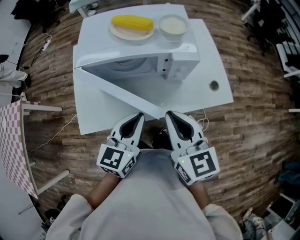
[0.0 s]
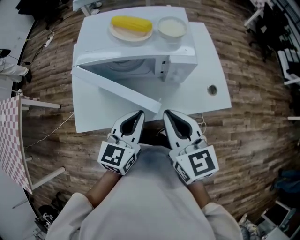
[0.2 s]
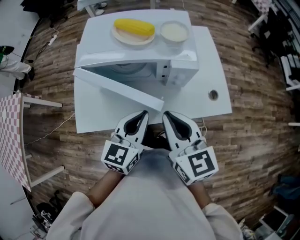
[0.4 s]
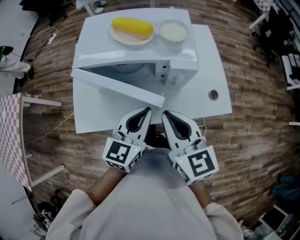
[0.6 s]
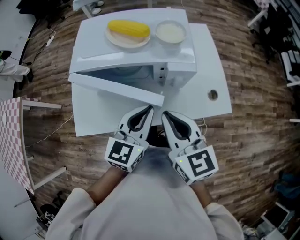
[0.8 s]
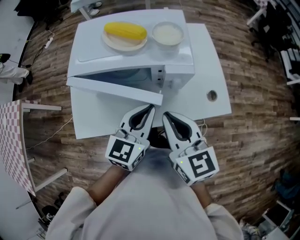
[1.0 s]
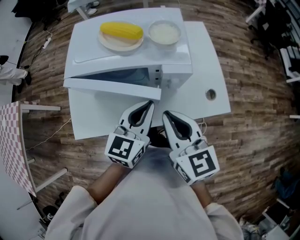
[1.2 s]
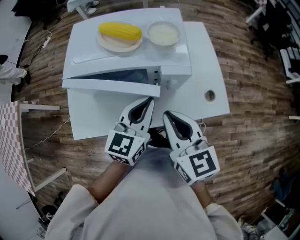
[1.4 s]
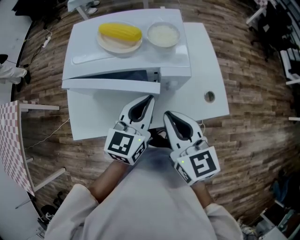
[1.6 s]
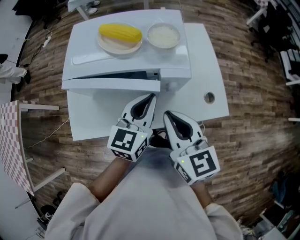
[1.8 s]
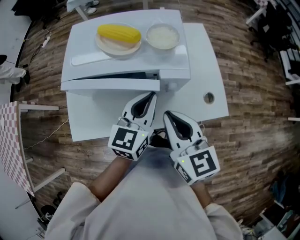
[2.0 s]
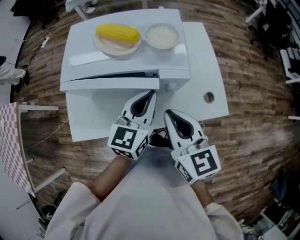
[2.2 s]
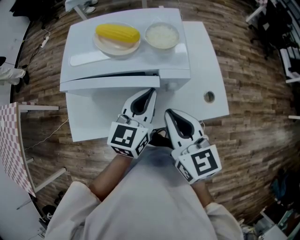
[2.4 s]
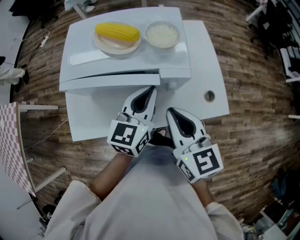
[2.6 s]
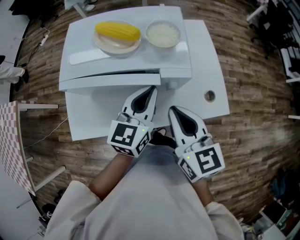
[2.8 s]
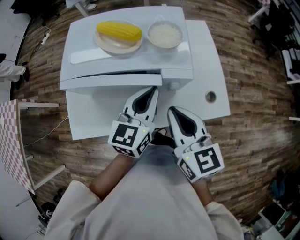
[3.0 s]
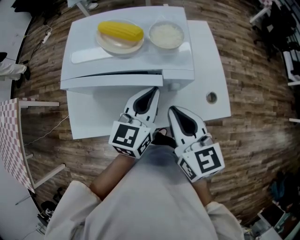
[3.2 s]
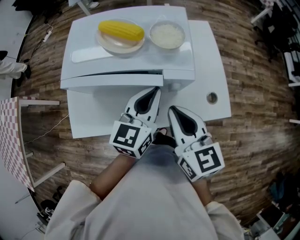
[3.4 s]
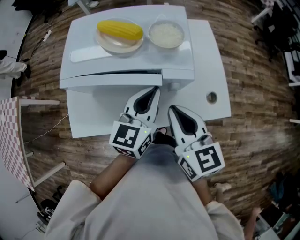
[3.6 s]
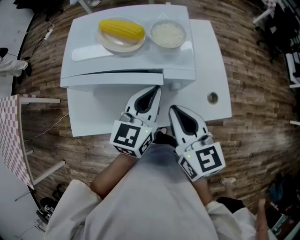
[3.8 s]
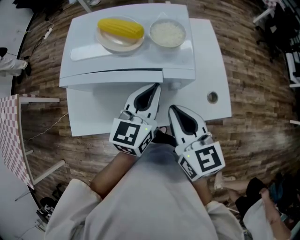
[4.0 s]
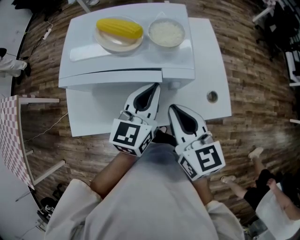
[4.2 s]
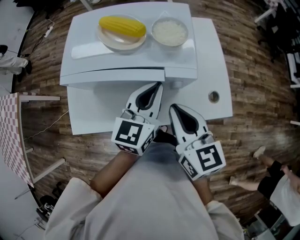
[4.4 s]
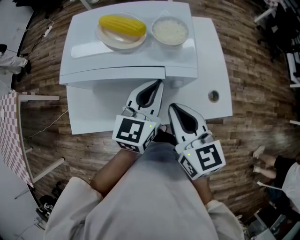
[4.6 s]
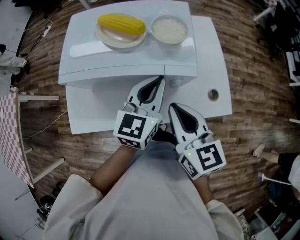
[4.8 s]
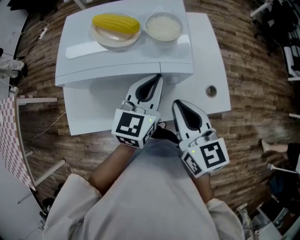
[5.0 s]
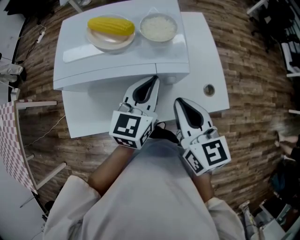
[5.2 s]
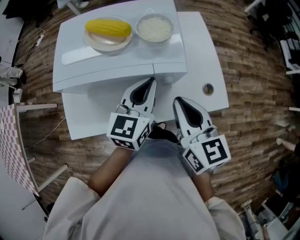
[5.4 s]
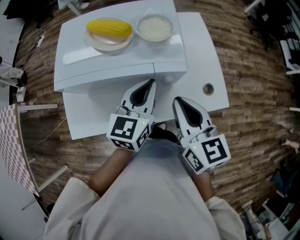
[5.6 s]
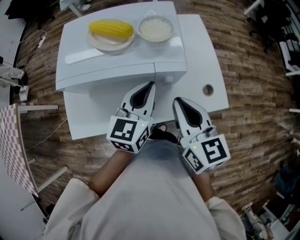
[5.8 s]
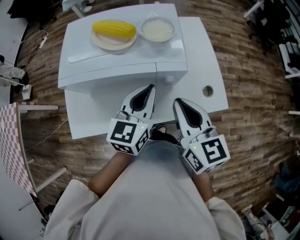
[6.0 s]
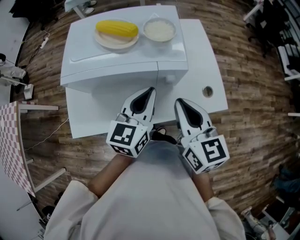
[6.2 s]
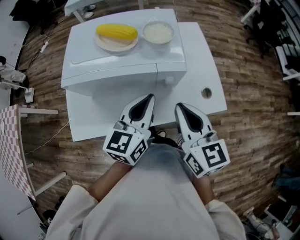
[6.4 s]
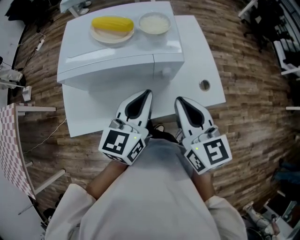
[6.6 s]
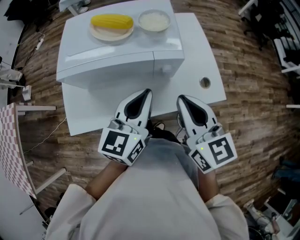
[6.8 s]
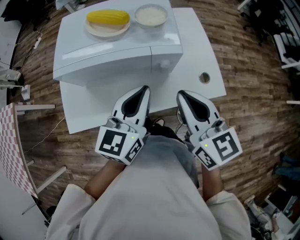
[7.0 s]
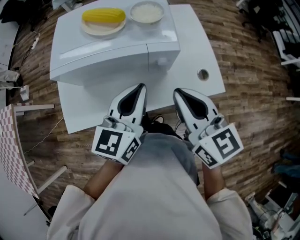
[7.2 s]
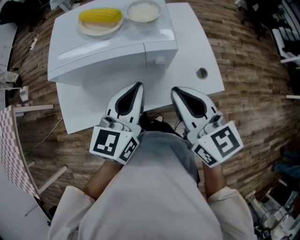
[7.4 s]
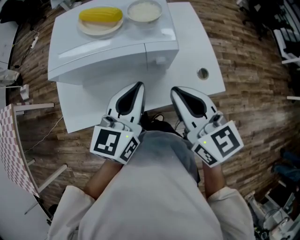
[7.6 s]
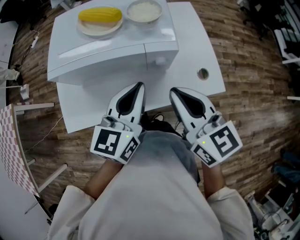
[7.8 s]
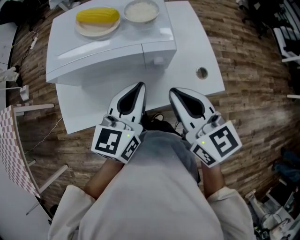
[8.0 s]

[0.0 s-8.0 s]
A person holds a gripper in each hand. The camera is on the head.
0.0 to 1.6 s: The left gripper heads forward and to the right, covering roughly 15 cm; the right gripper is displaced forward by approximately 5 cm.
1.6 to 4.8 s: The grippers stay close to where they were, moving slightly.
4.8 to 6.4 s: The left gripper goes about 5 cm backward.
6.4 to 8.0 s: The grippers make only small movements.

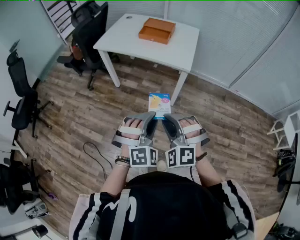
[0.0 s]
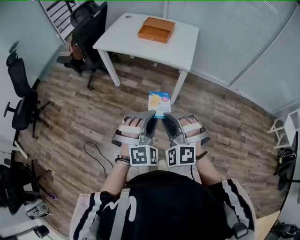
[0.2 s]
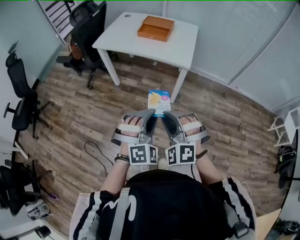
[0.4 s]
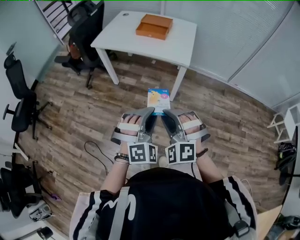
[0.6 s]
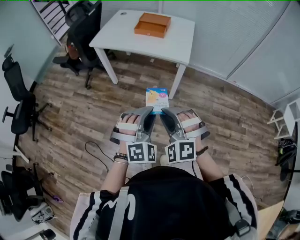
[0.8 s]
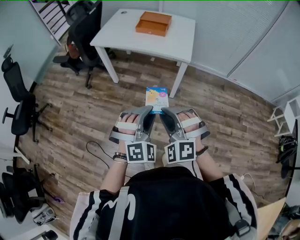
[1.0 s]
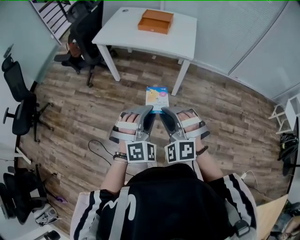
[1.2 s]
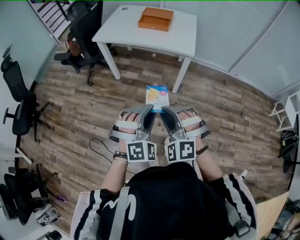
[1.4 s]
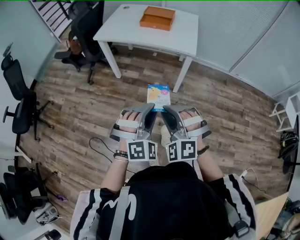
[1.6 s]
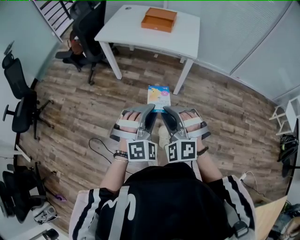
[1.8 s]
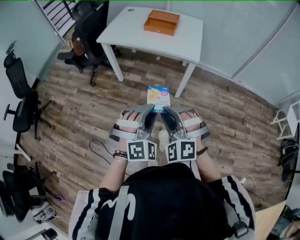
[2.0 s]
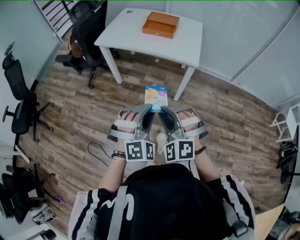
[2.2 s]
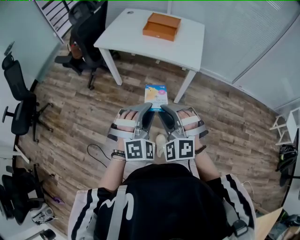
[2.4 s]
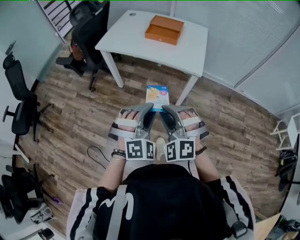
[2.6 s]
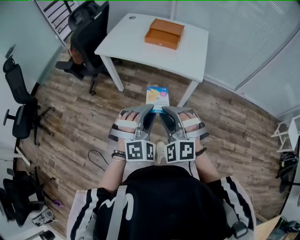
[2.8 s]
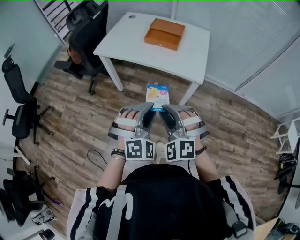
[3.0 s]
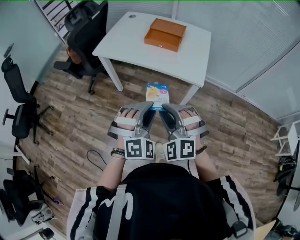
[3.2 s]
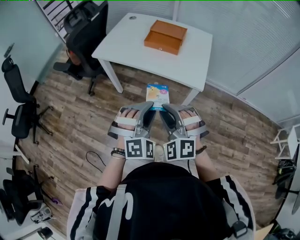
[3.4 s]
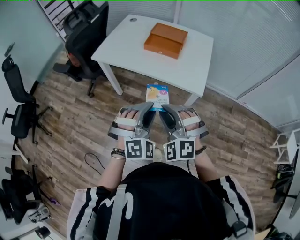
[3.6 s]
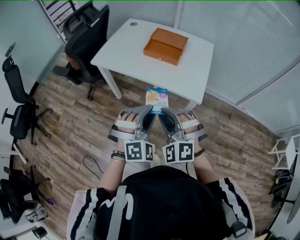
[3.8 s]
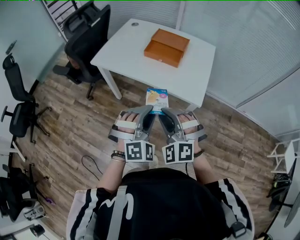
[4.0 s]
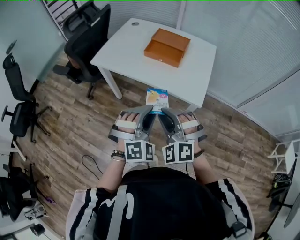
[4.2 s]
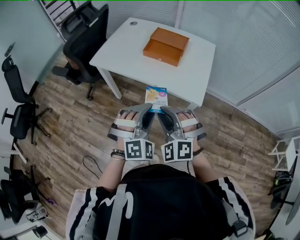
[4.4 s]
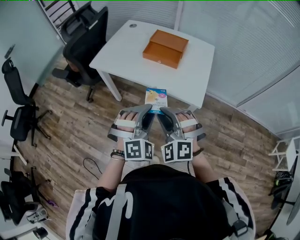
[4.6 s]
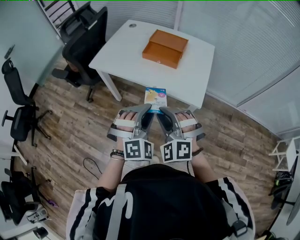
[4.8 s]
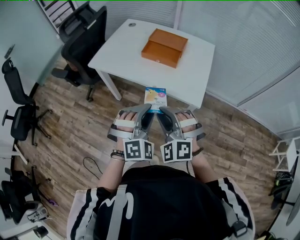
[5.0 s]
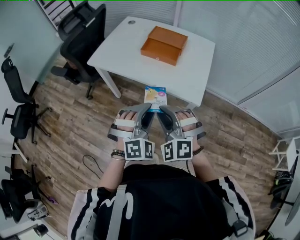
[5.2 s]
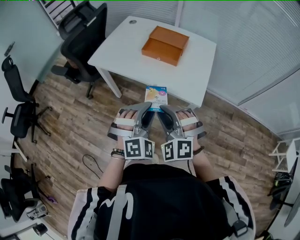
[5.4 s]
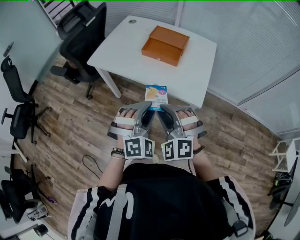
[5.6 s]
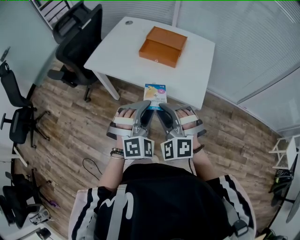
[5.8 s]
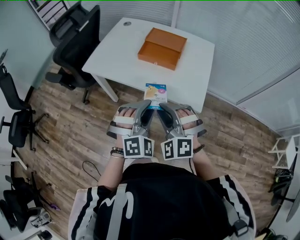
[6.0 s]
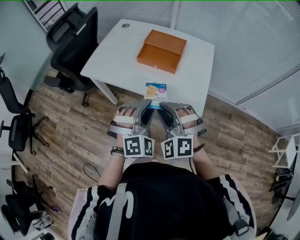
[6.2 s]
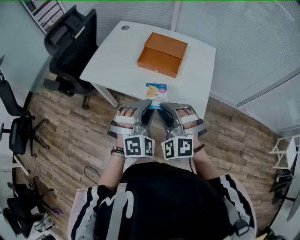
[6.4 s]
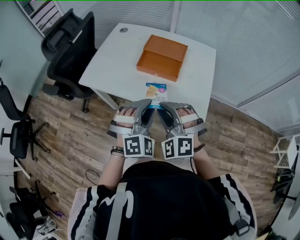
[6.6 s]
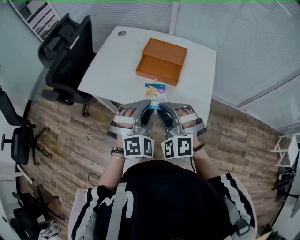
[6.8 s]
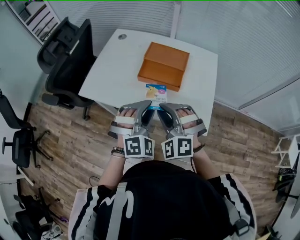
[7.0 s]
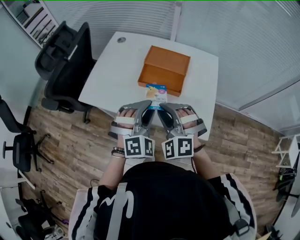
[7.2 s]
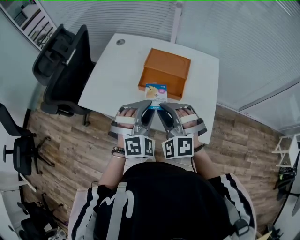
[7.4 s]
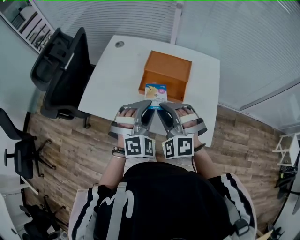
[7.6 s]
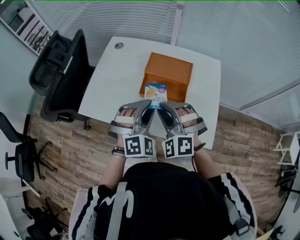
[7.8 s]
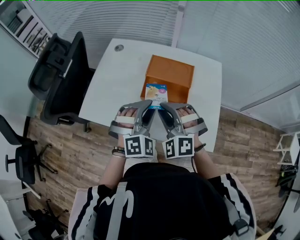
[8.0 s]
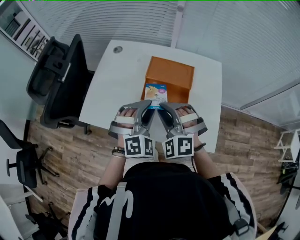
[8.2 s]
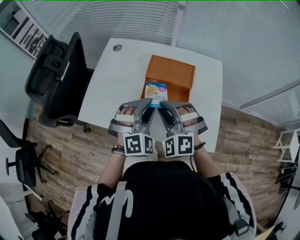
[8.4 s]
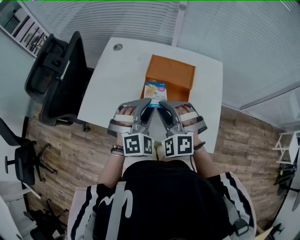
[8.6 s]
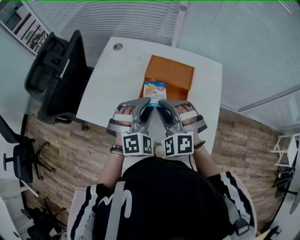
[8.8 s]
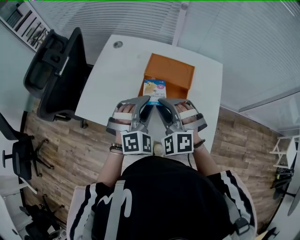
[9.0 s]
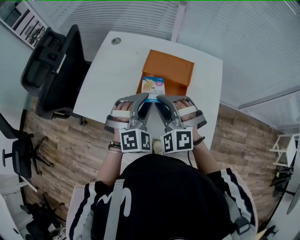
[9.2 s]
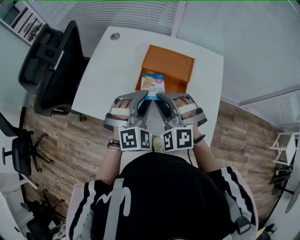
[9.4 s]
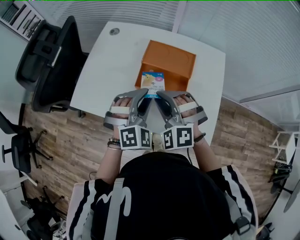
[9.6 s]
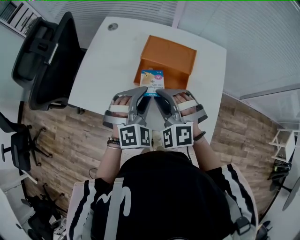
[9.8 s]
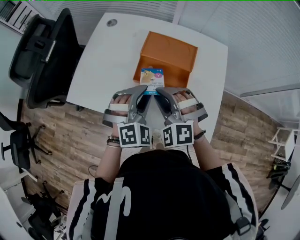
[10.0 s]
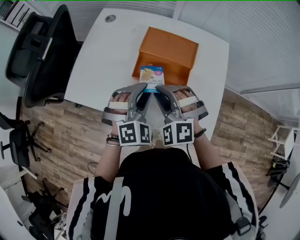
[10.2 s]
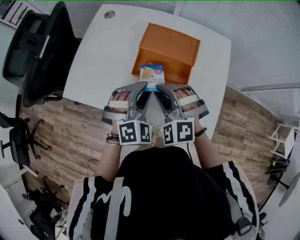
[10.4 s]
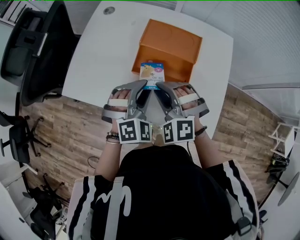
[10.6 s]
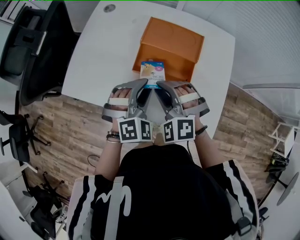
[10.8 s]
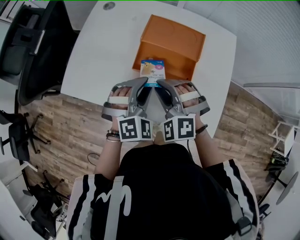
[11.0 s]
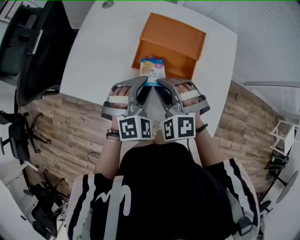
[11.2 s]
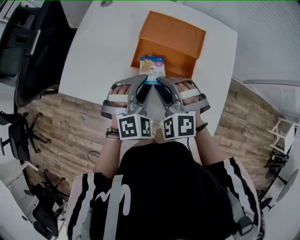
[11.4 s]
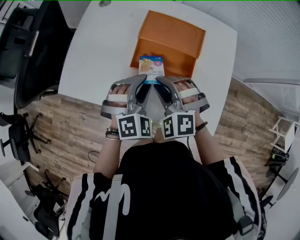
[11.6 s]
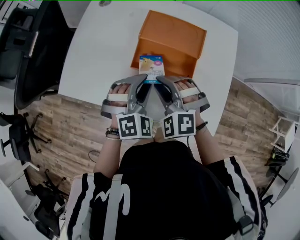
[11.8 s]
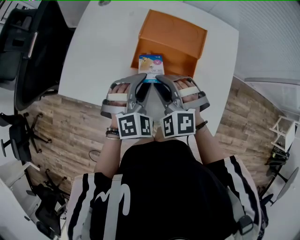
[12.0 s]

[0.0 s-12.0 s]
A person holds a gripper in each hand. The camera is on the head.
0.0 to 1.6 s: Both grippers move to the left, some 10 cm.
1.6 to 3.0 s: The two grippers go about 20 cm forward.
3.0 to 4.4 s: The two grippers go about 15 cm forward.
4.4 to 6.0 s: The grippers both shift forward by roughly 10 cm.
6.0 to 7.6 s: The grippers both shift forward by about 25 cm.
7.6 to 9.0 s: The grippers both shift forward by some 5 cm.
9.0 to 10.4 s: Both grippers move downward, roughly 5 cm.
10.4 to 12.0 s: There are only small adjustments of the grippers.

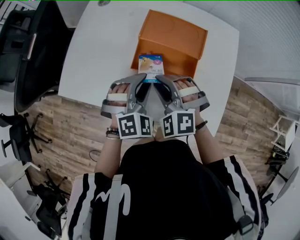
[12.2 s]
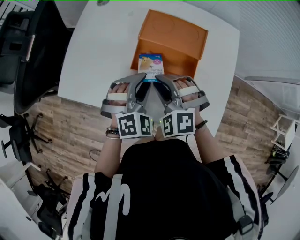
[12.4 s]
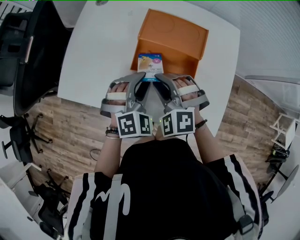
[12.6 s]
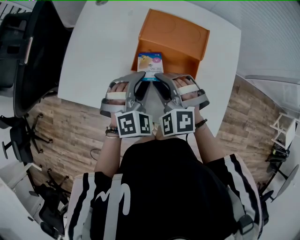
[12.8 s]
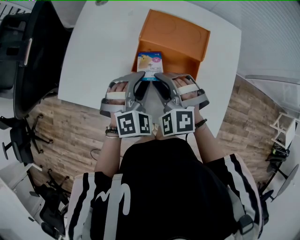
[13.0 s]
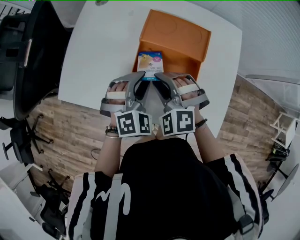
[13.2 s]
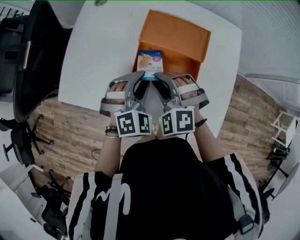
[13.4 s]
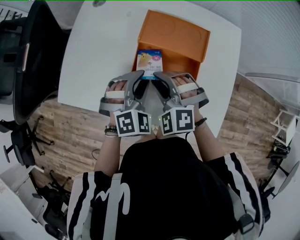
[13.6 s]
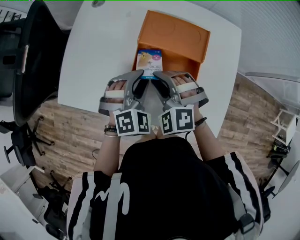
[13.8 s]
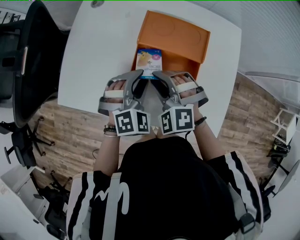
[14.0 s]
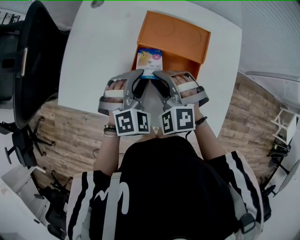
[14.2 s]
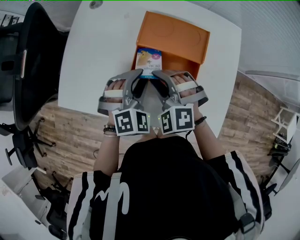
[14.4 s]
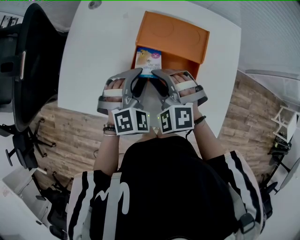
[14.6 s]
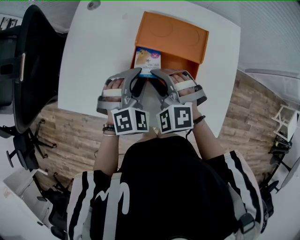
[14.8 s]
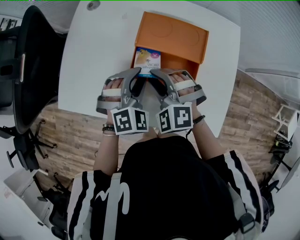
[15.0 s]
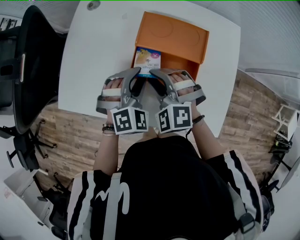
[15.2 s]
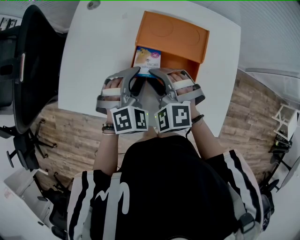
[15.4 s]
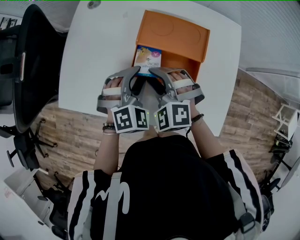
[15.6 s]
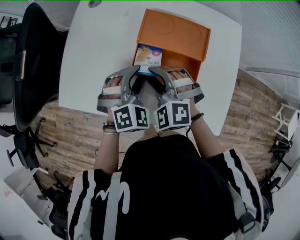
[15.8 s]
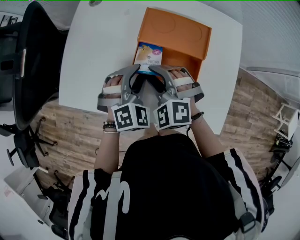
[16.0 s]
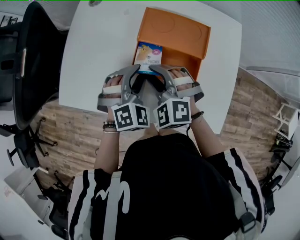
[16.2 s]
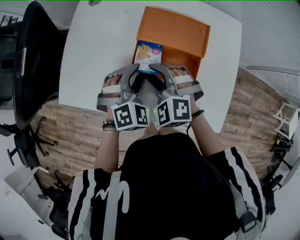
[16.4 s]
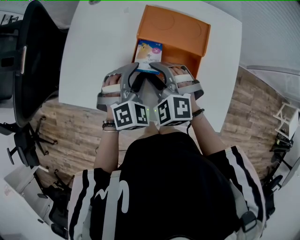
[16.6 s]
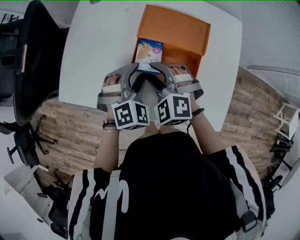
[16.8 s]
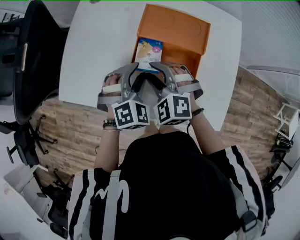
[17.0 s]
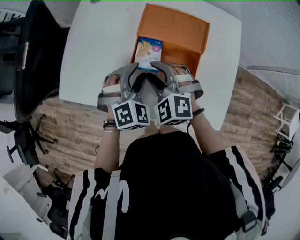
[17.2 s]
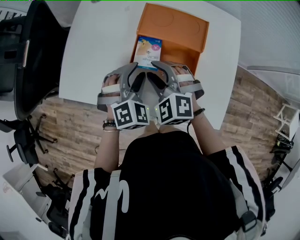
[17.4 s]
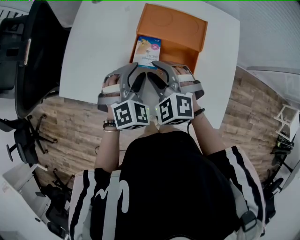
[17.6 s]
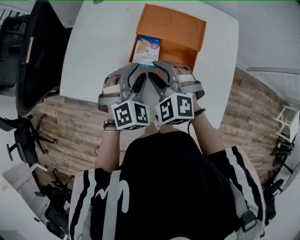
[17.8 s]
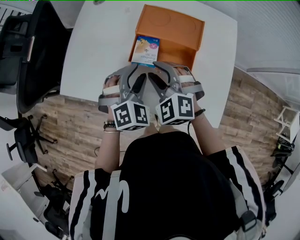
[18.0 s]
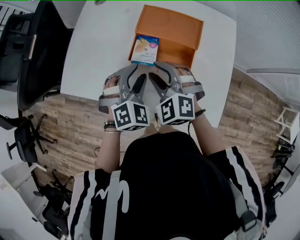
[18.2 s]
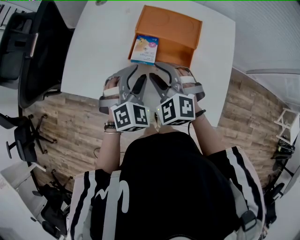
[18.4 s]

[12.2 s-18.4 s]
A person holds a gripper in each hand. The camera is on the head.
12.2 to 16.8 s: The grippers make only small movements.
16.8 to 18.4 s: The right gripper ends up about 5 cm from where it was. The left gripper moves approximately 5 cm.
